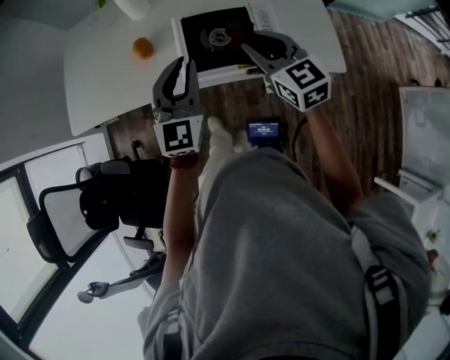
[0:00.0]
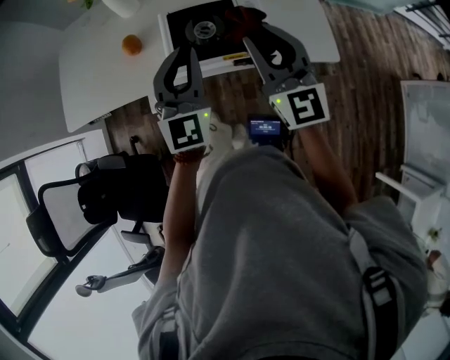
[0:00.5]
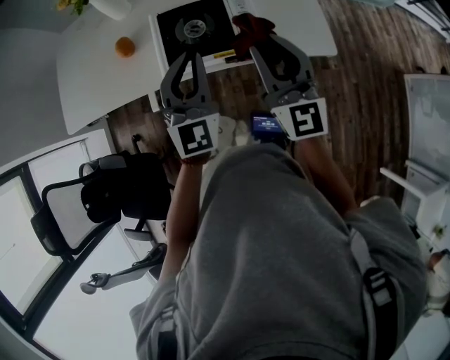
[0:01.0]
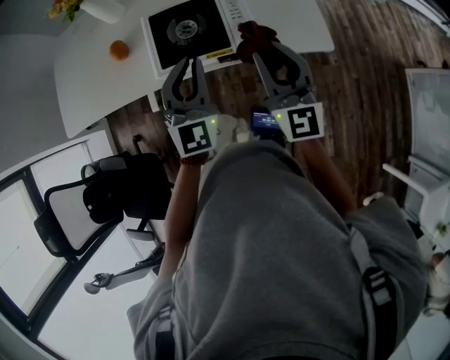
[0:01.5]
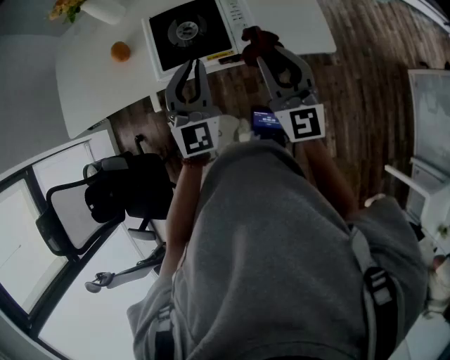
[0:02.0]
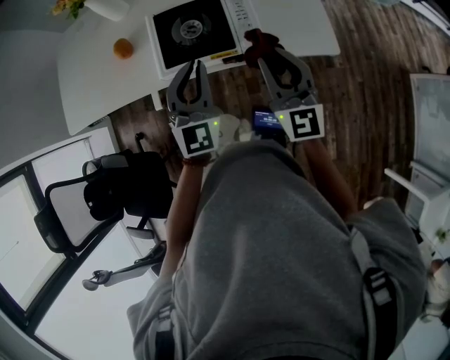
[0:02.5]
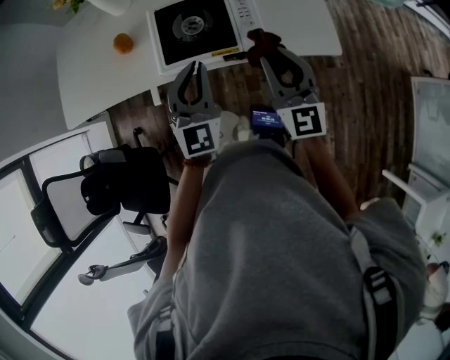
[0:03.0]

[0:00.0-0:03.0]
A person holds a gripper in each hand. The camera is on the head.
0:00.0 to 0:01.5: The right gripper is displaced to the right and backward by about 15 cm, and swivels approximately 30 degrees; the left gripper travels to the right by some 10 cm.
0:01.5 to 0:03.0: The grippers move only a little.

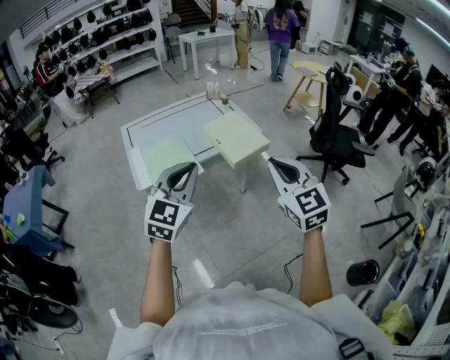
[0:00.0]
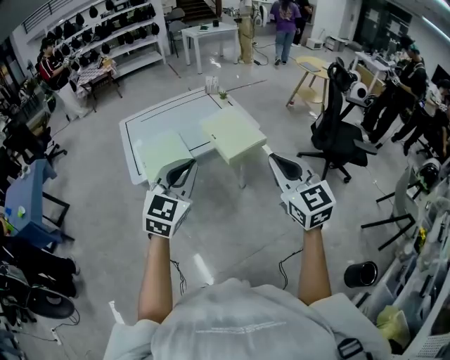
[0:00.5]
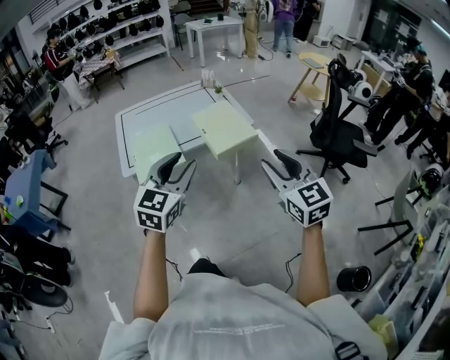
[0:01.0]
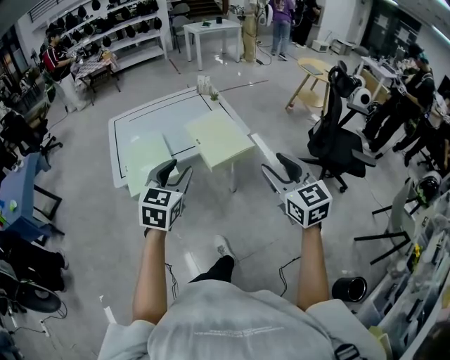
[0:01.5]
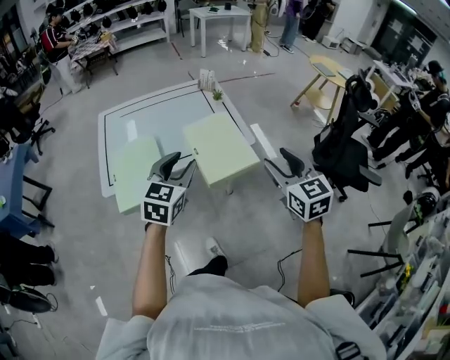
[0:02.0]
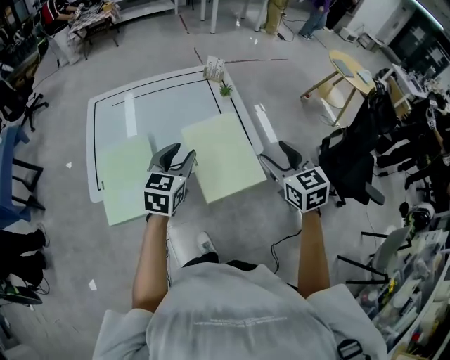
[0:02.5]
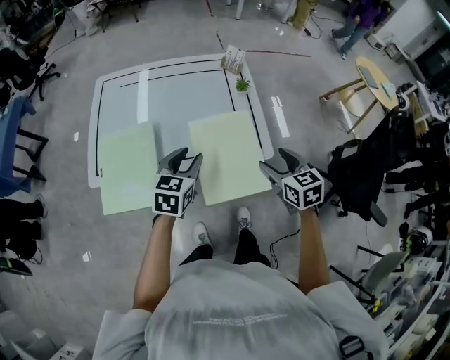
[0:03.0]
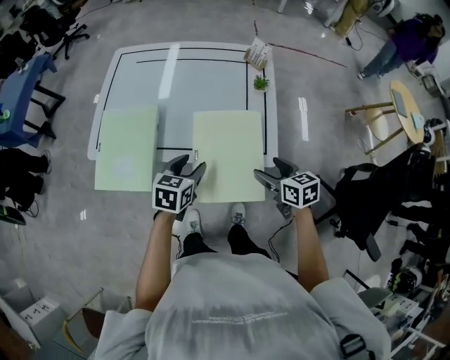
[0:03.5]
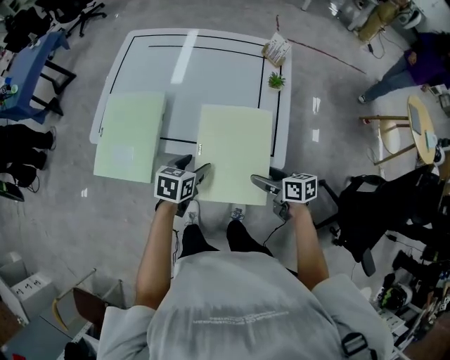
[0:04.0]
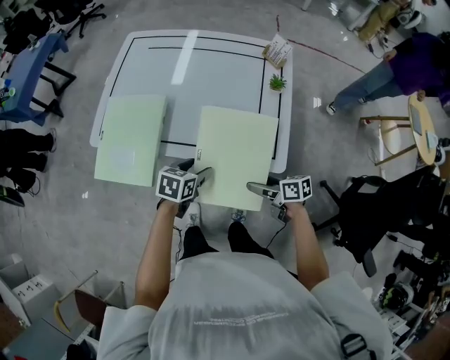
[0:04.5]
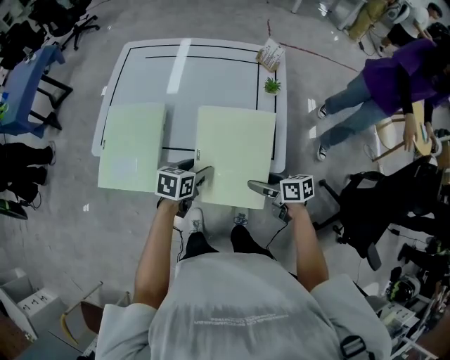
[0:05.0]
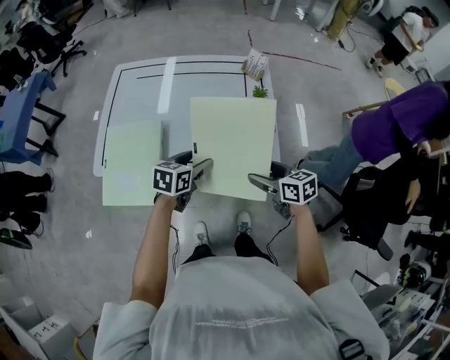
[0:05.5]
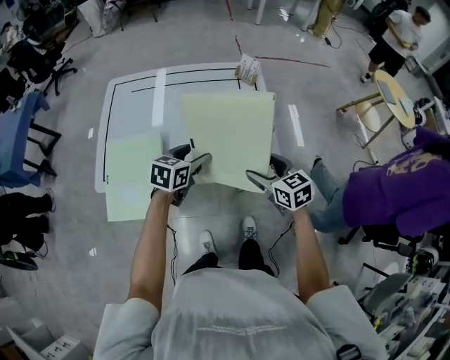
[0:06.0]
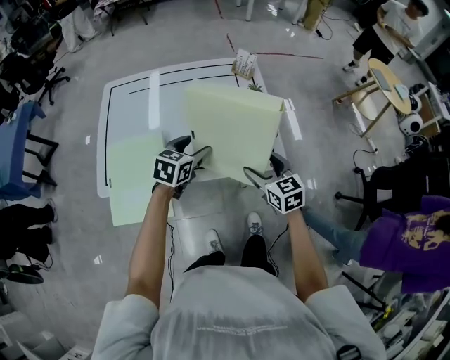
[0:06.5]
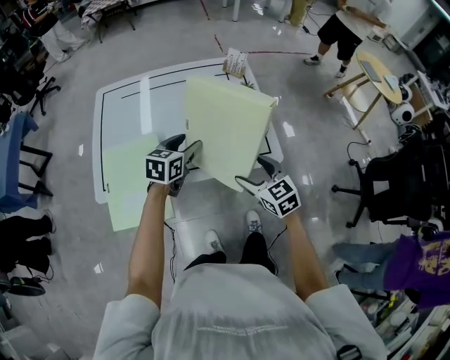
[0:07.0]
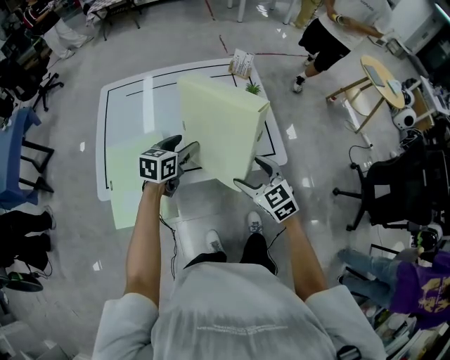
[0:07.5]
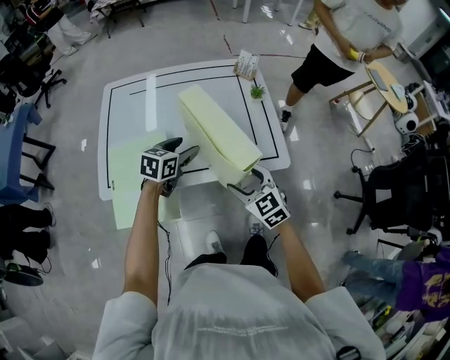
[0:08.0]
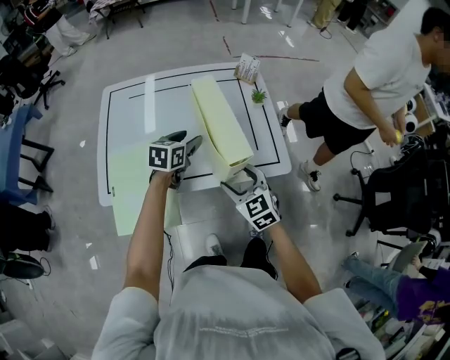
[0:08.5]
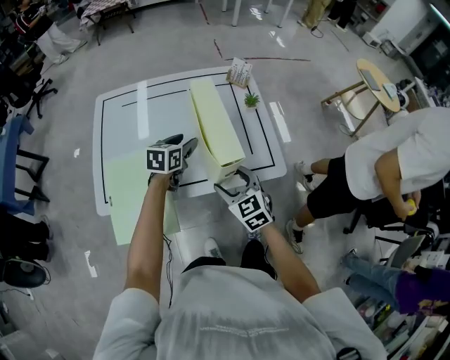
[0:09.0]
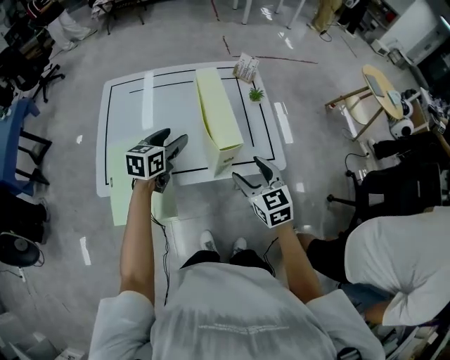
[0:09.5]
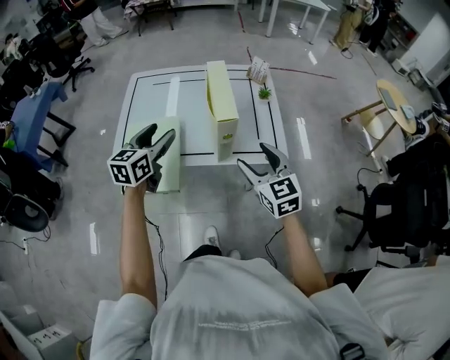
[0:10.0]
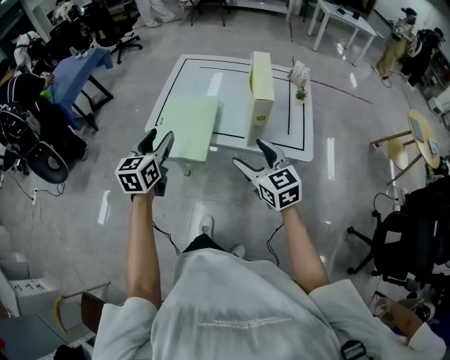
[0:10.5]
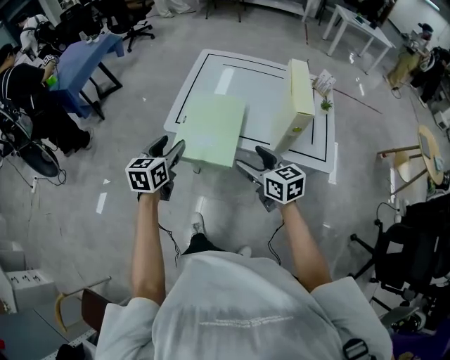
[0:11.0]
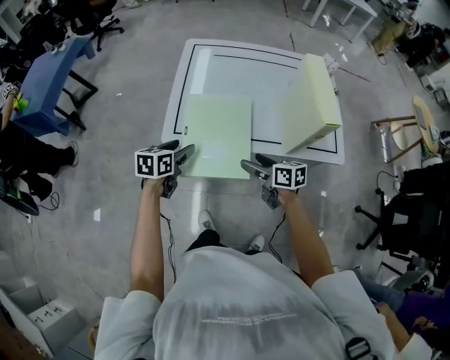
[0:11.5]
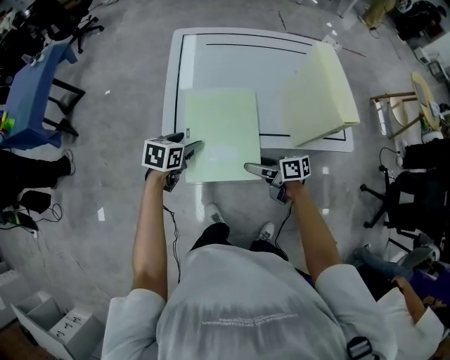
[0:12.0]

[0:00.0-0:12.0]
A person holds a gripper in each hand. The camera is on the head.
0:00.0 to 0:02.0: The left gripper is displaced forward, downward and to the right by some 30 cm, turns by roughly 20 degrees, and opens up. The right gripper shifts roughly 30 cm forward and to the right, and opens its fingers.
0:02.0 to 0:04.0: Both grippers move downward, about 30 cm. The left gripper swivels roughly 50 degrees. Meanwhile the right gripper turns by roughly 70 degrees, and opens up.
0:04.0 to 0:06.0: The right gripper goes some 10 cm upward and forward, and swivels about 40 degrees; the left gripper travels forward and upward by roughly 15 cm, and turns by roughly 20 degrees.
0:06.0 to 0:08.0: The left gripper heads to the left, covering some 5 cm; the right gripper heads to the left and backward, covering approximately 10 cm, and rotates approximately 20 degrees.
0:08.0 to 0:10.0: The left gripper goes some 20 cm upward, backward and to the left, and turns by roughly 30 degrees. The right gripper heads upward, covering about 10 cm.
0:10.0 to 0:12.0: The left gripper shifts some 30 cm downward and to the left, and changes its angle by approximately 30 degrees, while the right gripper travels to the left and downward by some 35 cm, and rotates around the line of its fingers by roughly 60 degrees, clockwise from behind.

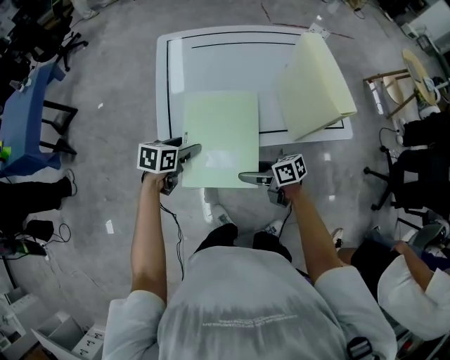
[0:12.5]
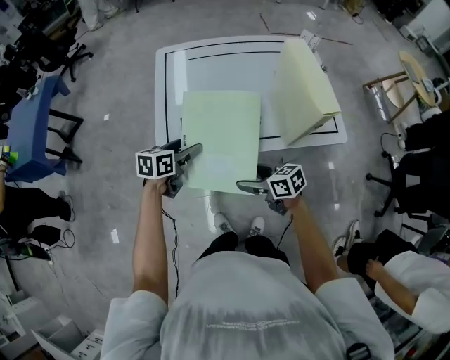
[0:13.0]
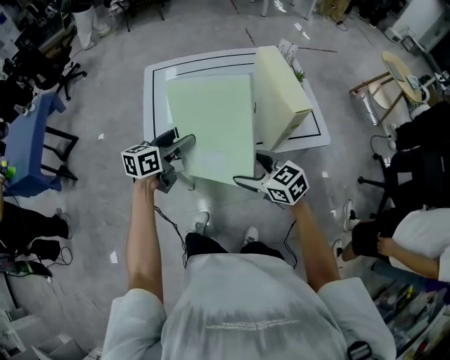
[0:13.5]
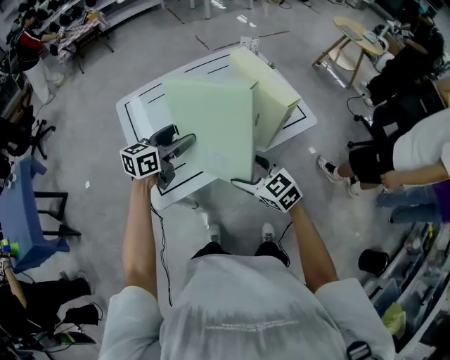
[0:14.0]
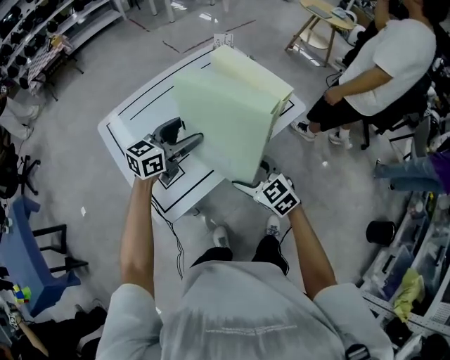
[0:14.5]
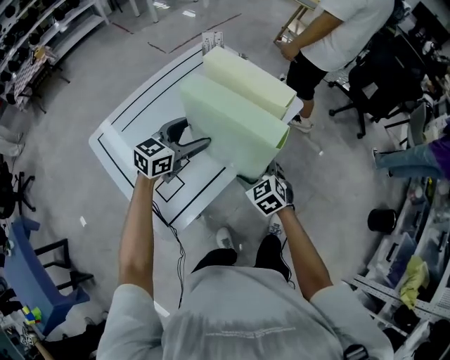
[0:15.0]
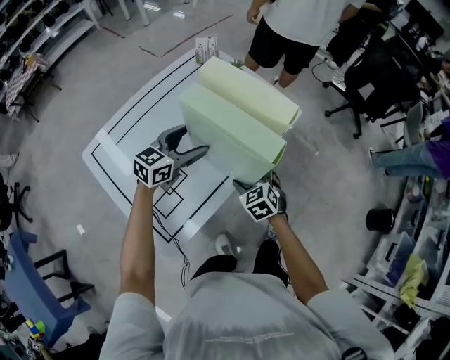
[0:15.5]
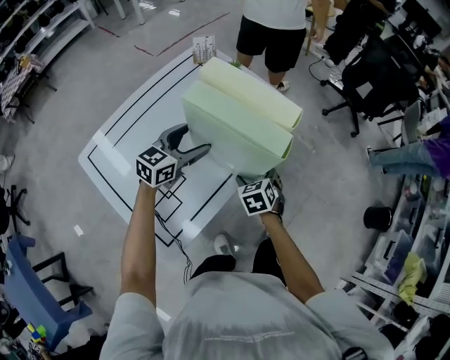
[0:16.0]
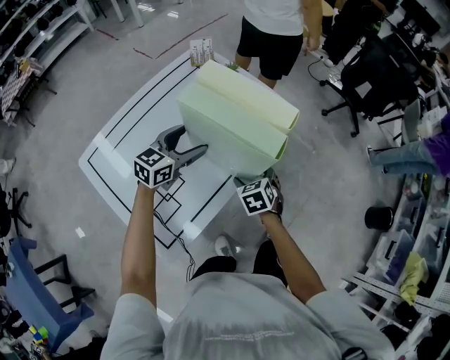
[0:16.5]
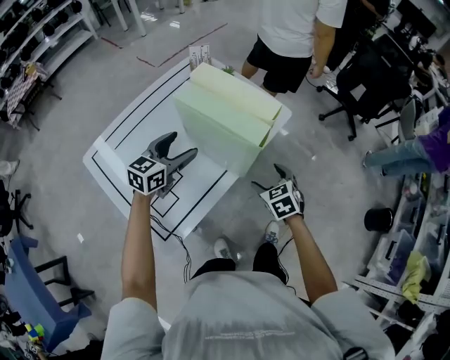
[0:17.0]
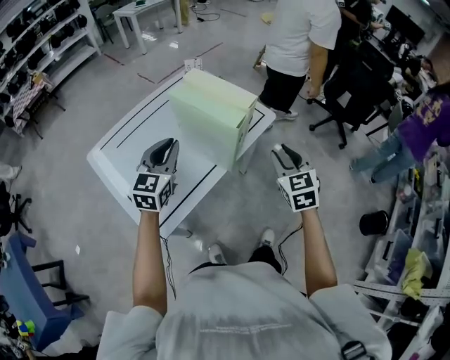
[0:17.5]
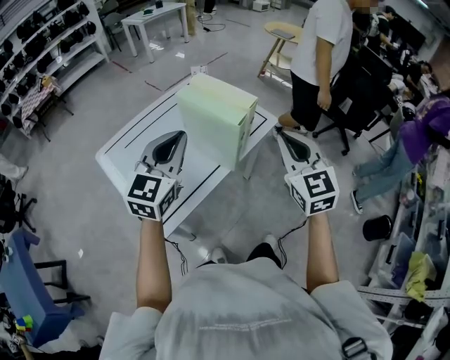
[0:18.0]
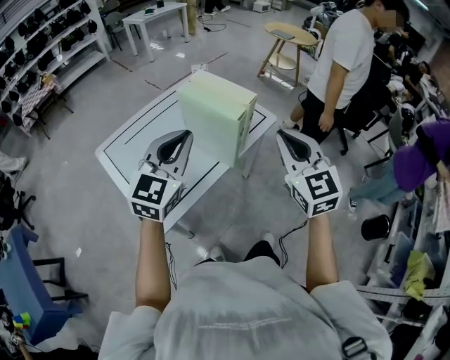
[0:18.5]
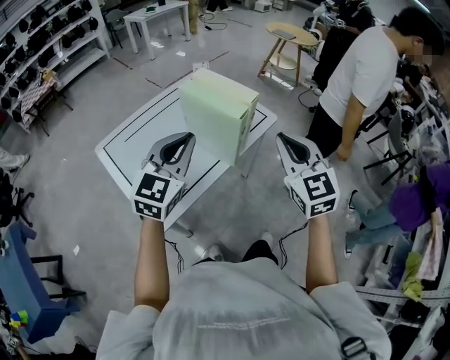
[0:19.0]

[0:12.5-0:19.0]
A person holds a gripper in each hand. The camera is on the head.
0:12.5 to 0:14.5: The right gripper heads upward, covering approximately 10 cm, and changes its angle by approximately 70 degrees. Meanwhile the left gripper ends up roughly 25 cm from where it was, and points its fingers roughly 30 degrees further upward.
0:14.5 to 0:17.0: The right gripper shifts by roughly 15 cm, and turns by approximately 40 degrees.
0:17.0 to 0:19.0: The left gripper travels upward and backward by approximately 30 cm, turns by about 30 degrees, and closes its fingers. The right gripper travels upward by about 30 cm, tips its fingers upward by some 40 degrees, and closes its fingers.

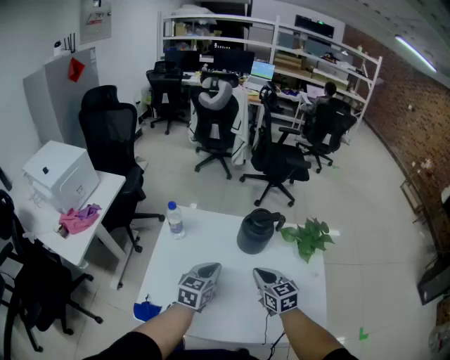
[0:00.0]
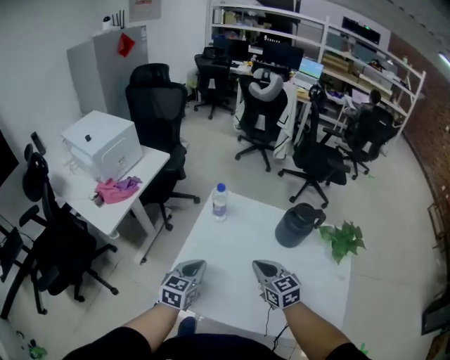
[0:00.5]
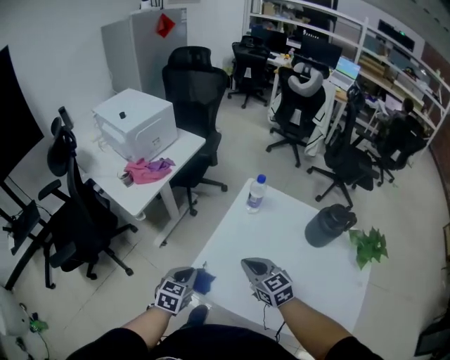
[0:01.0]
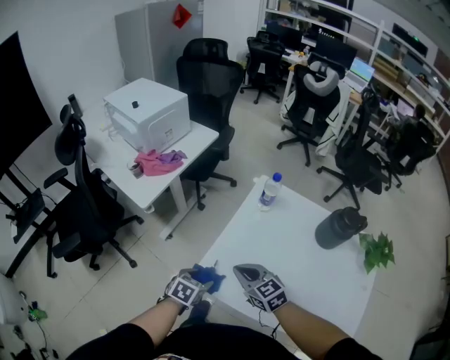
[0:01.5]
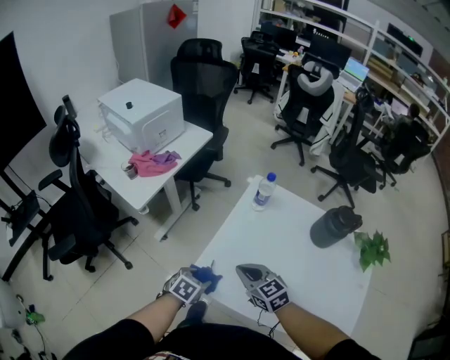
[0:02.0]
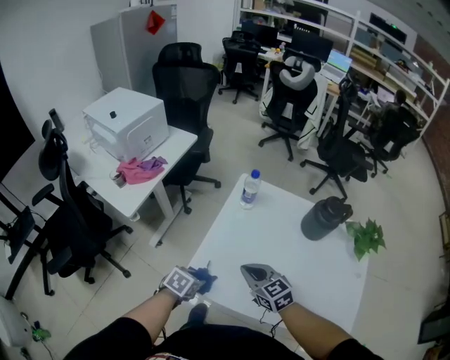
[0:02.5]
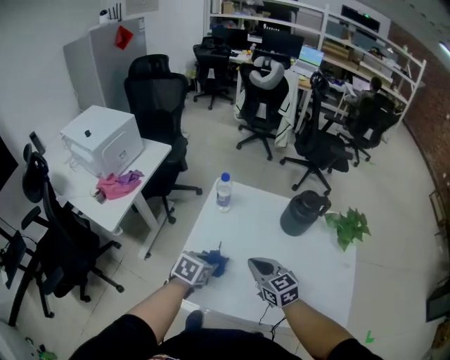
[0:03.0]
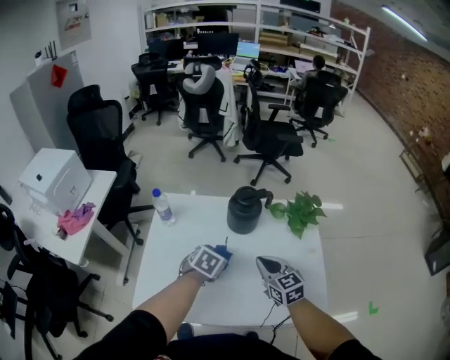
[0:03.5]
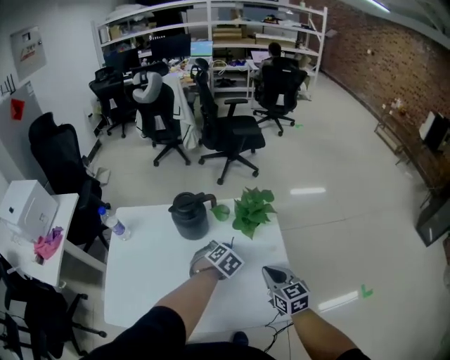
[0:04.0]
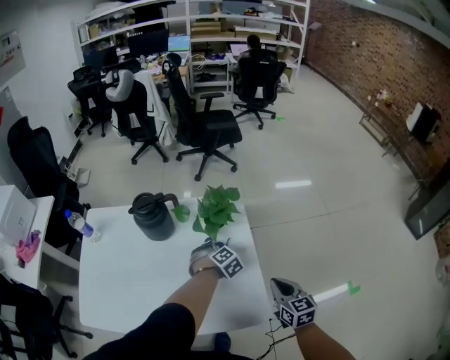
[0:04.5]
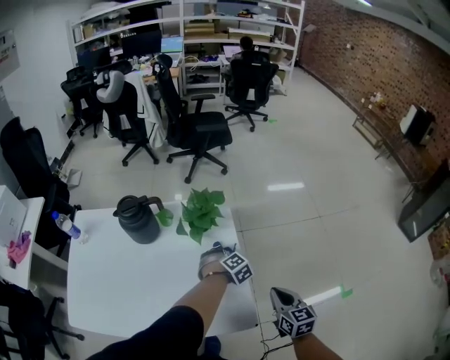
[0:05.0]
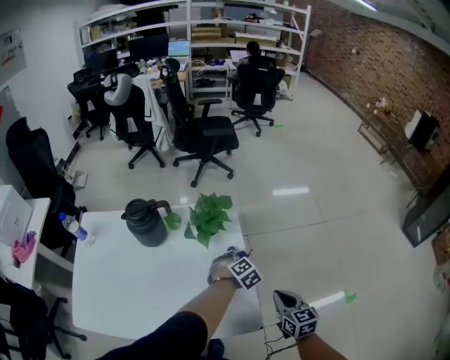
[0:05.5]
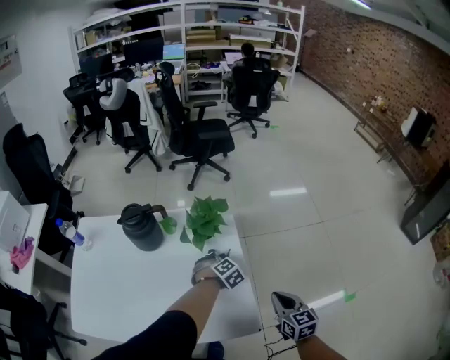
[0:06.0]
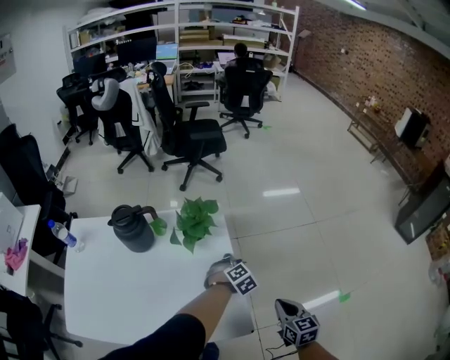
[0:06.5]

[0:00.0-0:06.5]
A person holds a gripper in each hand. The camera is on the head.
0:00.0 to 0:02.0: The right gripper shifts by about 35 cm, and turns by approximately 40 degrees, while the left gripper shifts by about 35 cm, angles its fingers downward, by roughly 40 degrees, and opens its fingers.
0:02.0 to 0:04.5: Both grippers are carried roughly 70 cm. The right gripper changes its angle by about 60 degrees, while the left gripper rotates around the line of its fingers by approximately 60 degrees, clockwise from behind, and closes.
0:04.5 to 0:06.5: The left gripper swings left and right, some 15 cm each way, with 2 reversals. The right gripper heads to the right and backward, covering some 10 cm.
